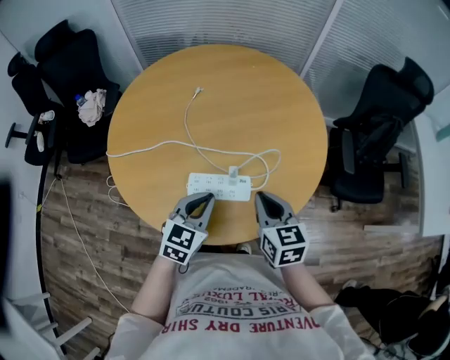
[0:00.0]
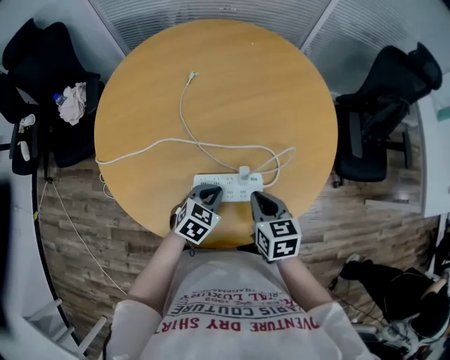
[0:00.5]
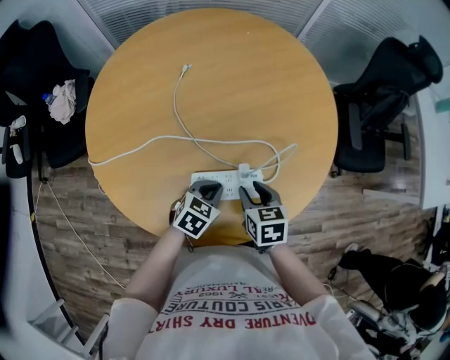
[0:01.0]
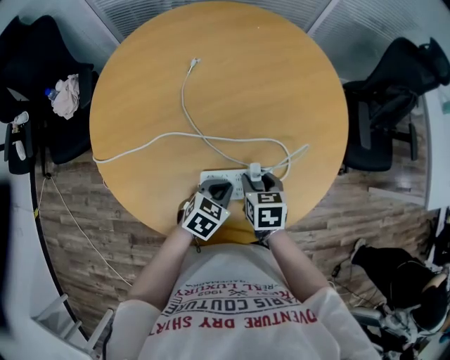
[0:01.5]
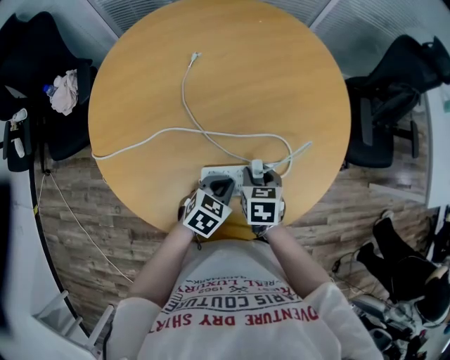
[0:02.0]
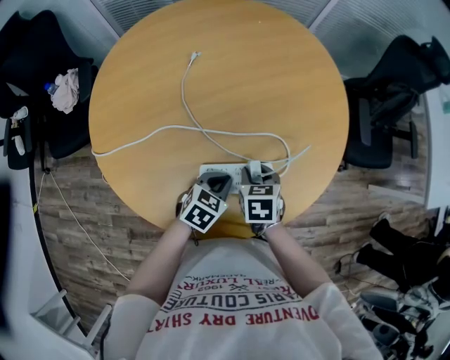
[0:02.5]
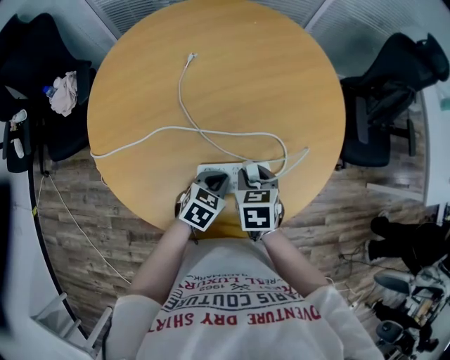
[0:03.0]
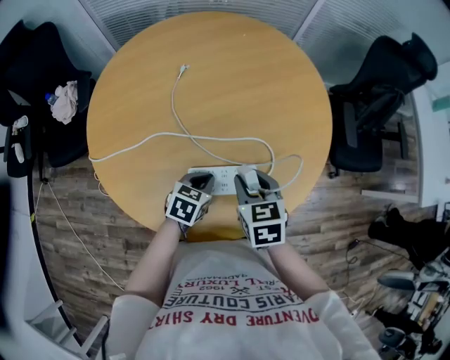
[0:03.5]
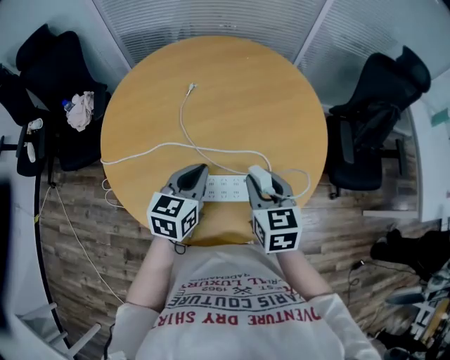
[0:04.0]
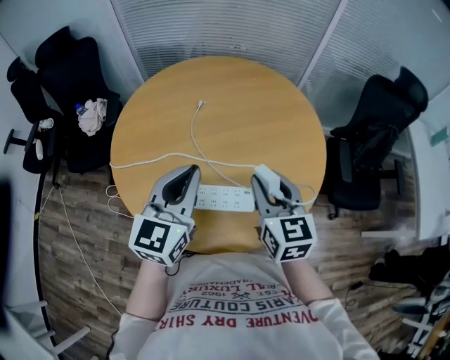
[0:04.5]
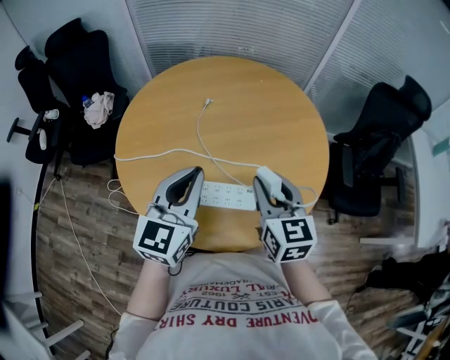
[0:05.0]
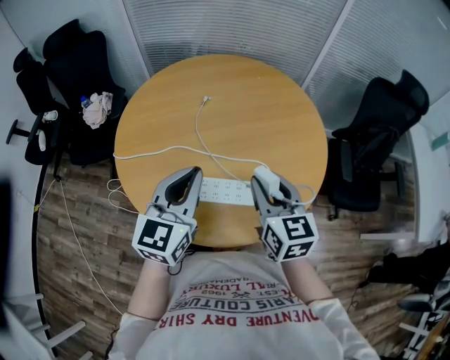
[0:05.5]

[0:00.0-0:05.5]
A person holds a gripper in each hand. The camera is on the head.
0:00.0 to 0:02.0: The right gripper travels downward and to the left by approximately 20 cm, turns by about 30 degrees, and opens up. The left gripper shifts roughly 15 cm downward, and changes its angle by approximately 30 degrees.
0:02.0 to 0:03.5: The right gripper moves upward, about 10 cm.
0:03.5 to 0:05.5: The left gripper heads upward, covering roughly 30 cm, and angles its fingers upward, by some 40 degrees; the right gripper moves upward, roughly 15 cm, and rotates approximately 30 degrees.

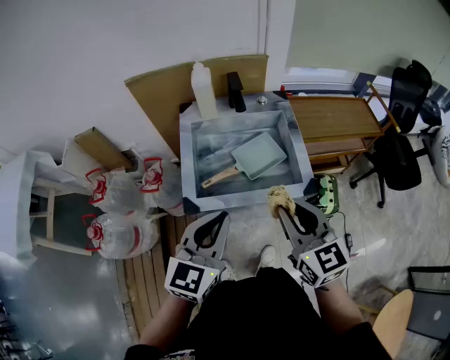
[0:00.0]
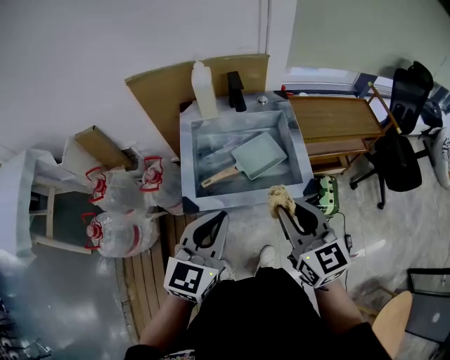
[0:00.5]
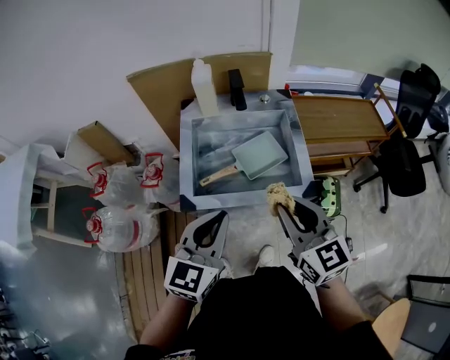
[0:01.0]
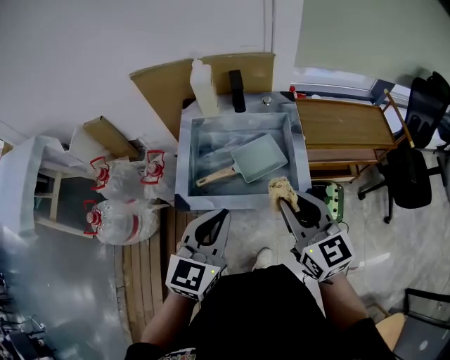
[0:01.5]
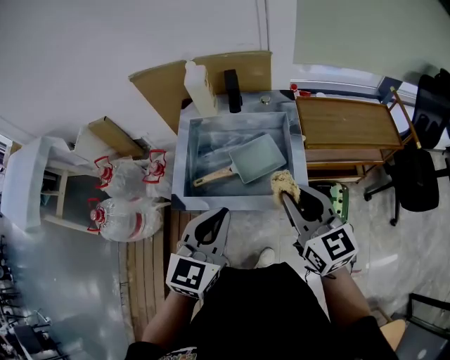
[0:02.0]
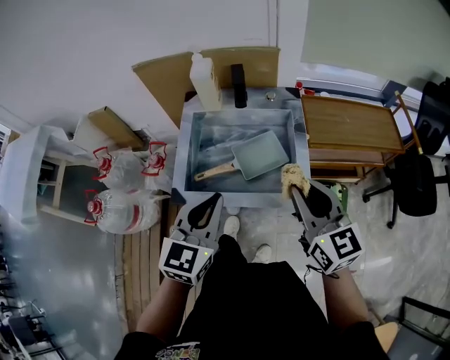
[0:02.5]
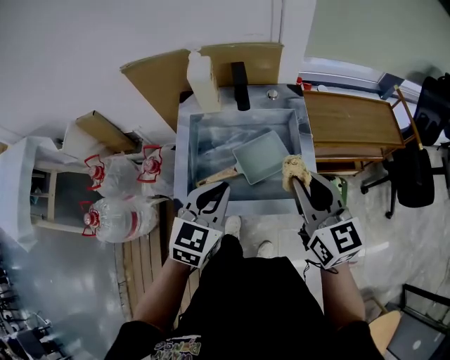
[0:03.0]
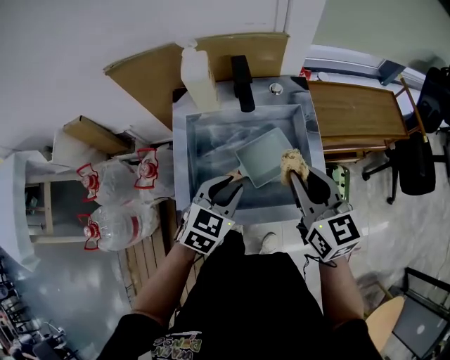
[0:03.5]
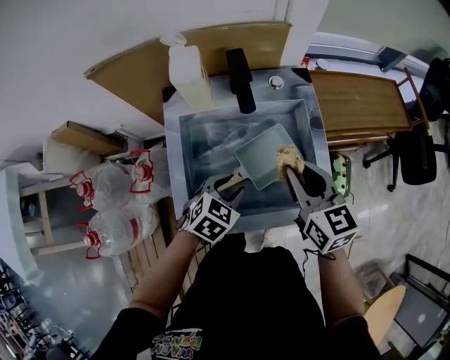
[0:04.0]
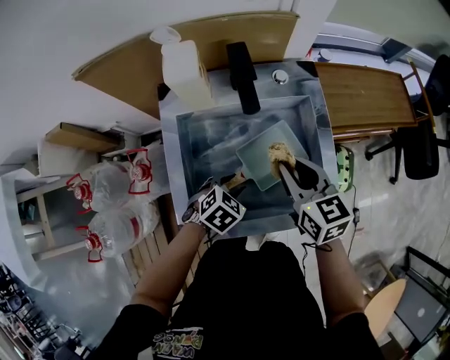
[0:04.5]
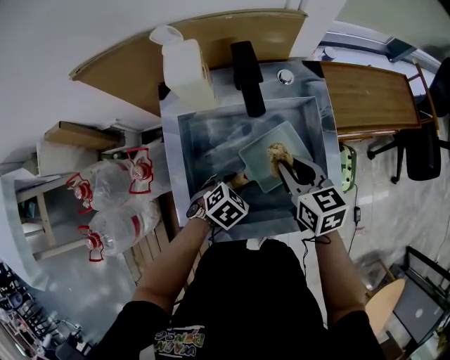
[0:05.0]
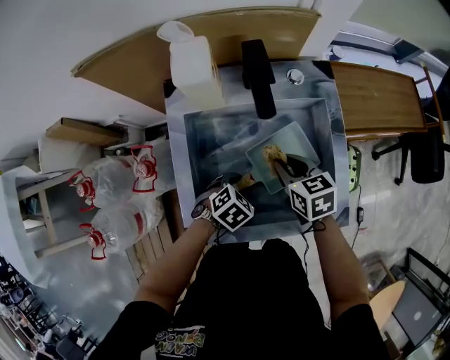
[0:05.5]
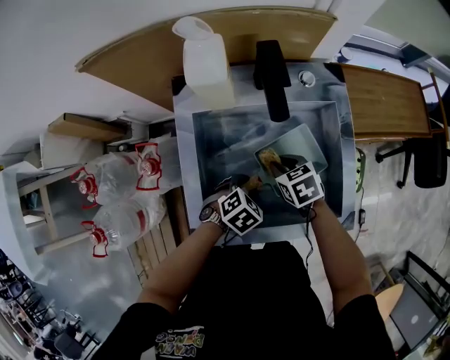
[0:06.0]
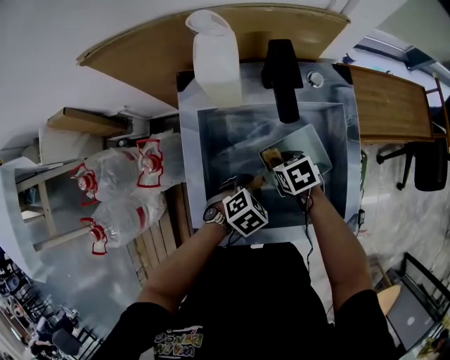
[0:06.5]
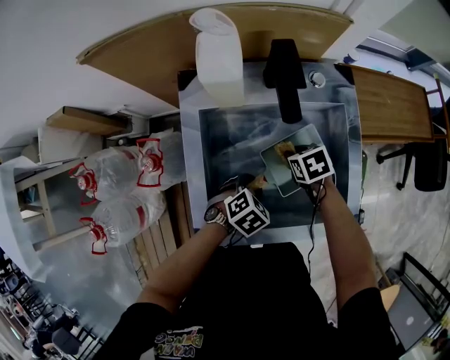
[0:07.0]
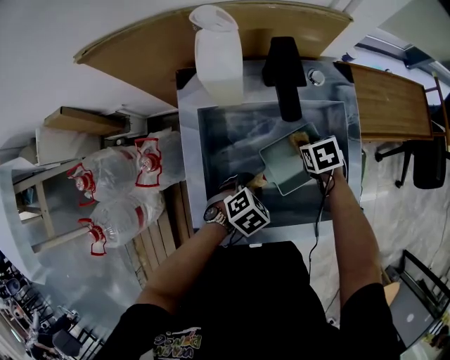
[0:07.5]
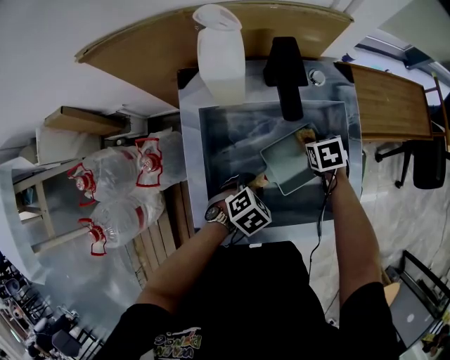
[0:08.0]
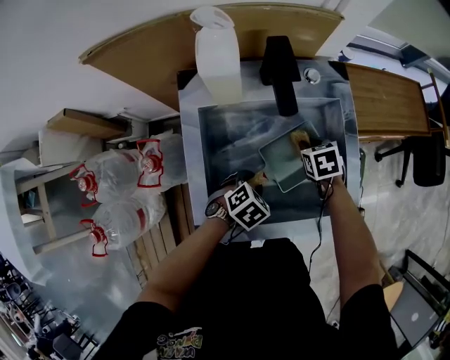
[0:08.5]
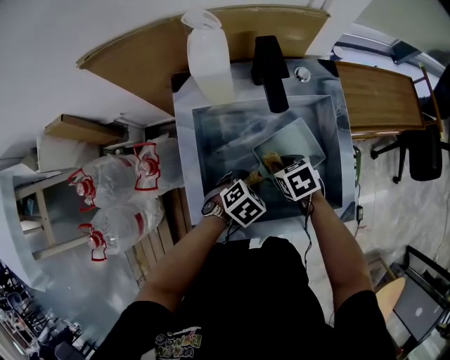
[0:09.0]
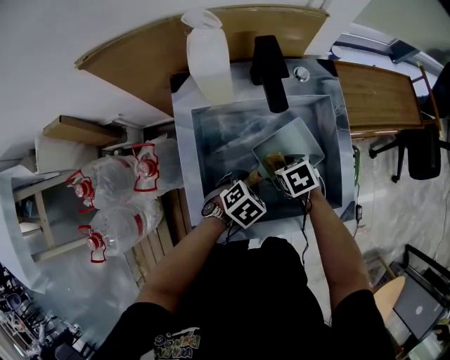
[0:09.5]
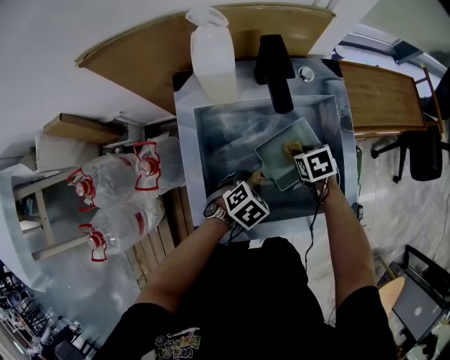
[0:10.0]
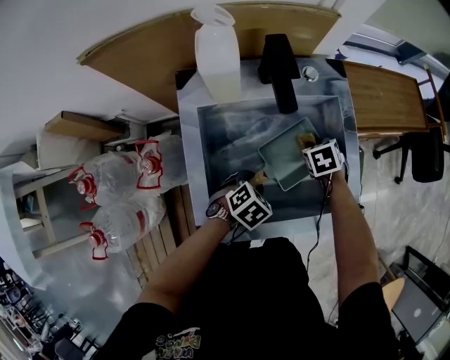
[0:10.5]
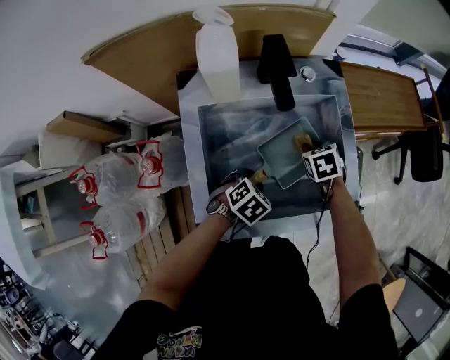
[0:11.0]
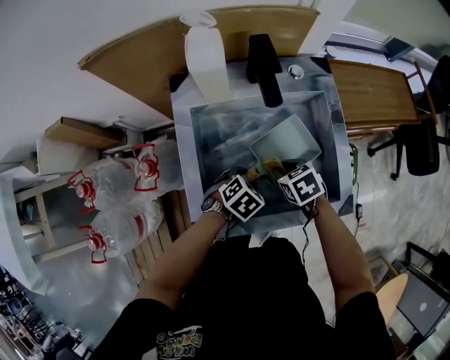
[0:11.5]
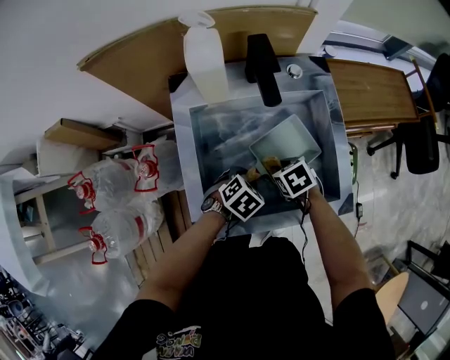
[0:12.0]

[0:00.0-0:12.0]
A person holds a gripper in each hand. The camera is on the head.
0:00.0 to 0:02.0: The right gripper shifts some 10 cm to the right and forward, while the left gripper shifts about 10 cm to the right.
0:02.0 to 0:04.0: The left gripper is displaced downward and forward by about 30 cm, tips its fingers downward by some 30 degrees, and opens its fingers; the right gripper moves forward, downward and to the left, about 20 cm.
0:04.0 to 0:06.0: The left gripper moves downward, roughly 10 cm. The right gripper is displaced downward by some 20 cm, and points its fingers approximately 40 degrees further downward.
0:06.0 to 0:08.0: The right gripper shifts about 10 cm to the right and forward.
0:08.0 to 0:10.0: The right gripper heads backward, covering approximately 5 cm.
0:10.0 to 0:12.0: The right gripper heads backward, covering about 5 cm.

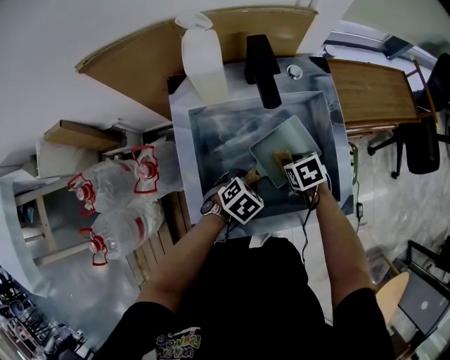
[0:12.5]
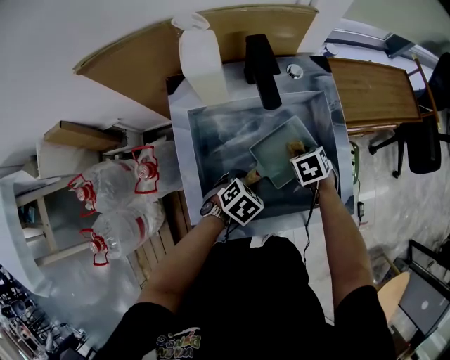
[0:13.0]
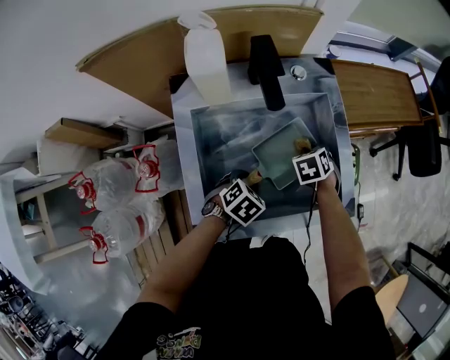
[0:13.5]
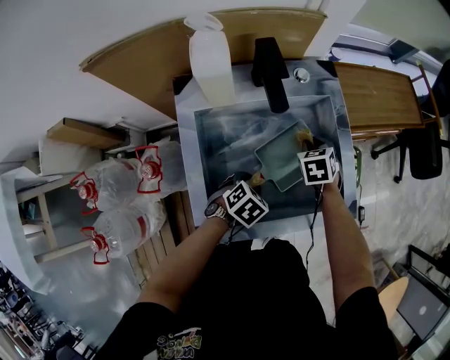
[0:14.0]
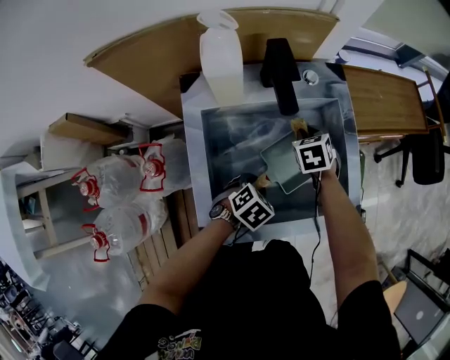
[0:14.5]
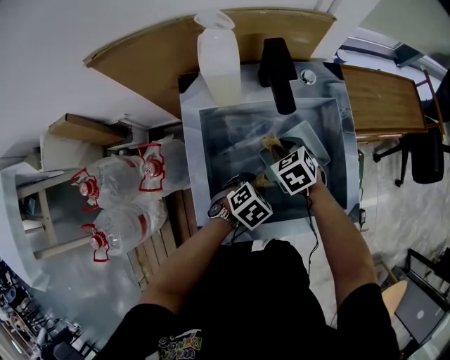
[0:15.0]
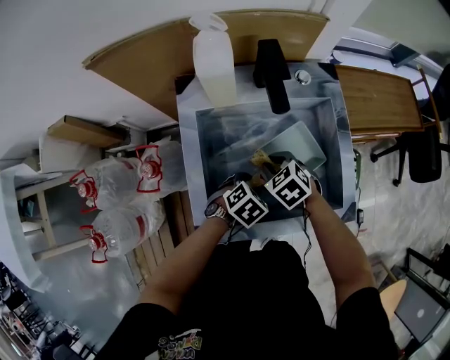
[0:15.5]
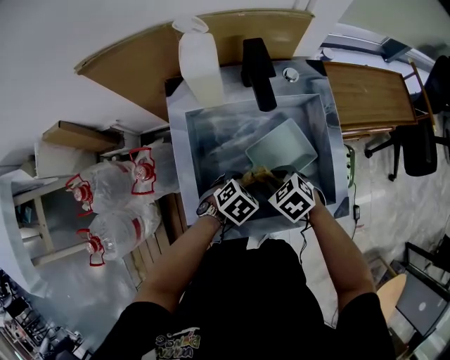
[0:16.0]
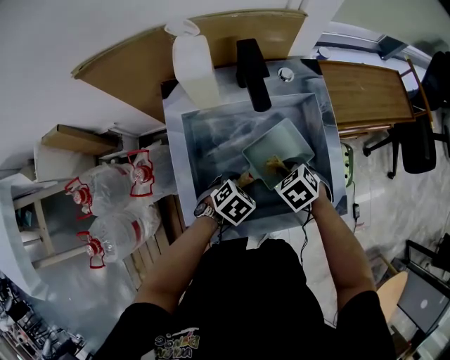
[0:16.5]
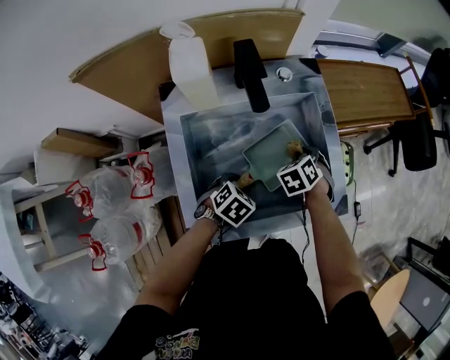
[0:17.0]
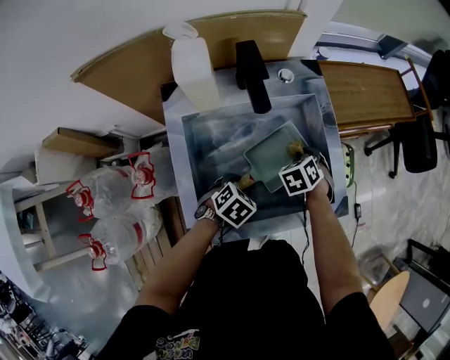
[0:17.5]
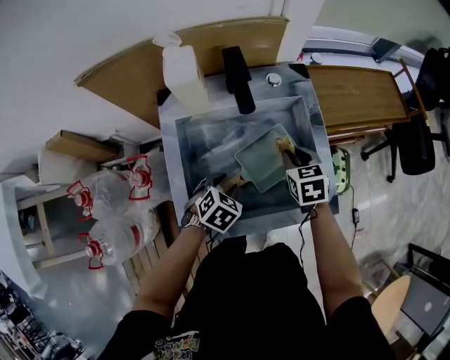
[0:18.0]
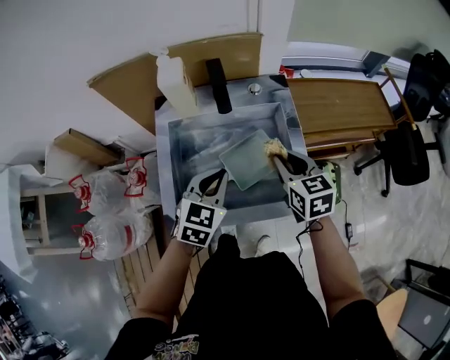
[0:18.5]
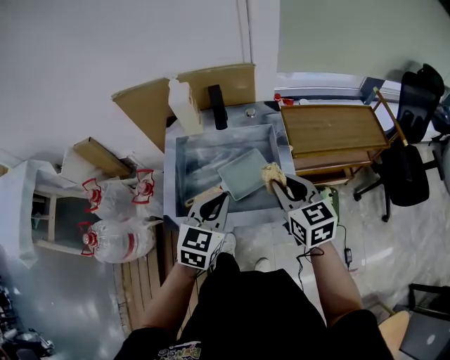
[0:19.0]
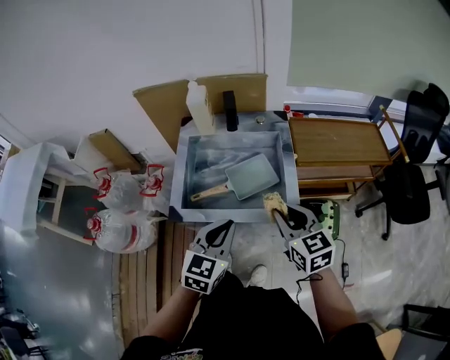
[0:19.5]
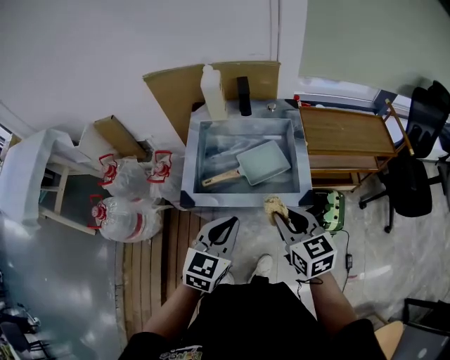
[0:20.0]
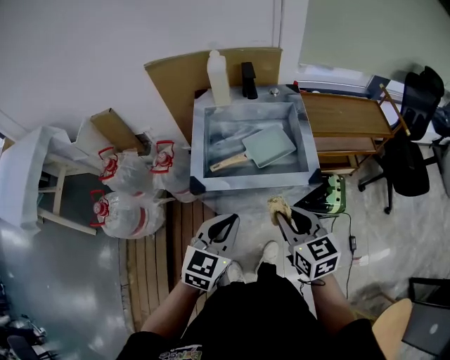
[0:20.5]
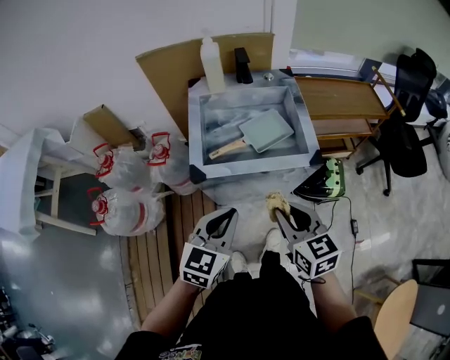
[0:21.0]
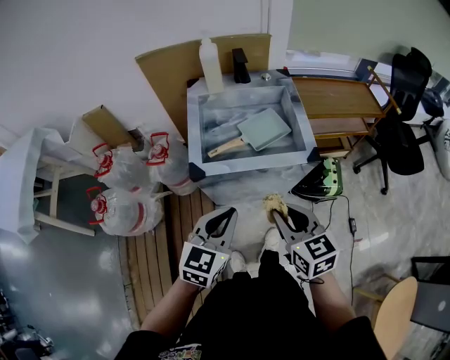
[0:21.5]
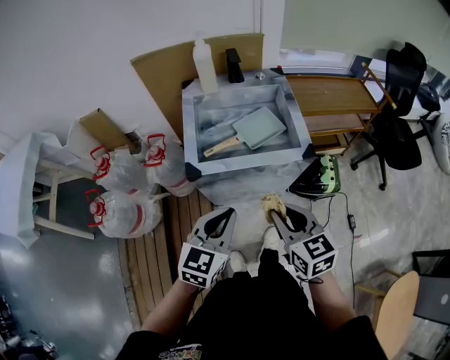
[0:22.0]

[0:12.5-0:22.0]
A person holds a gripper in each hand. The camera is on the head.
0:12.5 to 0:14.5: The right gripper ends up about 10 cm from where it was, and swivels approximately 20 degrees.
0:14.5 to 0:16.5: The right gripper changes place by some 15 cm, and rotates some 20 degrees.
0:16.5 to 0:18.0: The right gripper moves about 10 cm, and changes its angle by some 30 degrees.
0:18.0 to 0:20.0: Both grippers move backward and upward, roughly 35 cm. The right gripper turns by some 30 degrees. Meanwhile the left gripper tilts its fingers approximately 40 degrees upward, and closes.
0:20.0 to 0:22.0: The grippers both shift backward and to the left by about 15 cm.
